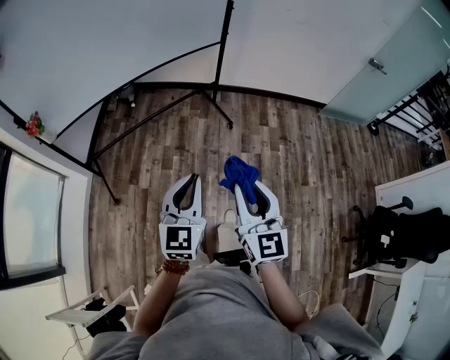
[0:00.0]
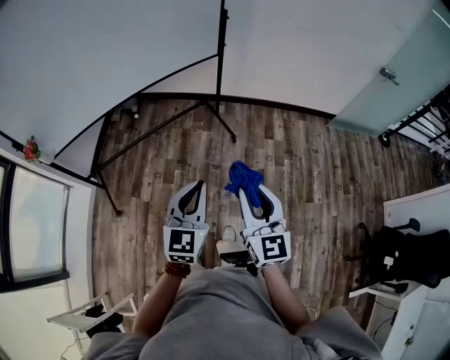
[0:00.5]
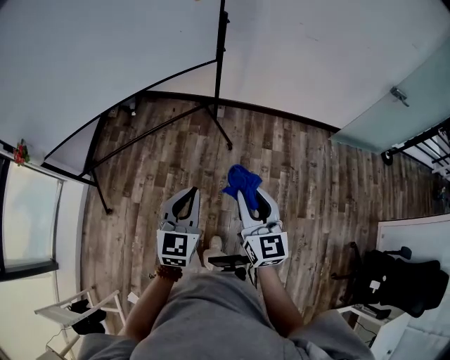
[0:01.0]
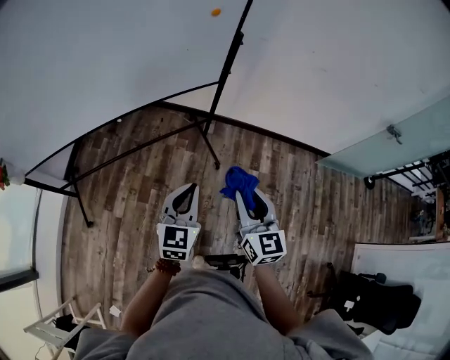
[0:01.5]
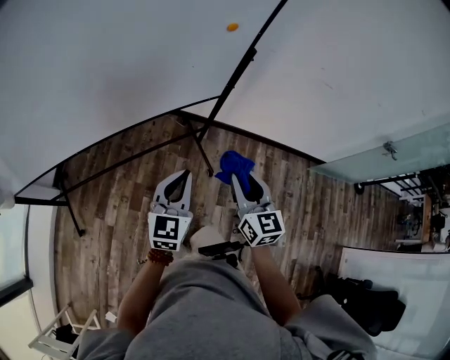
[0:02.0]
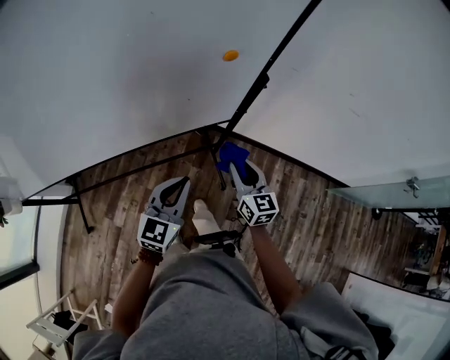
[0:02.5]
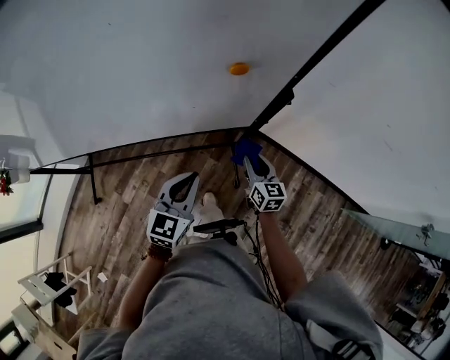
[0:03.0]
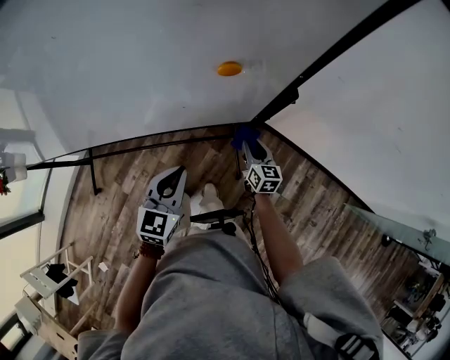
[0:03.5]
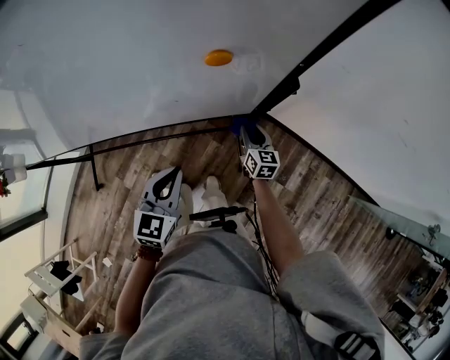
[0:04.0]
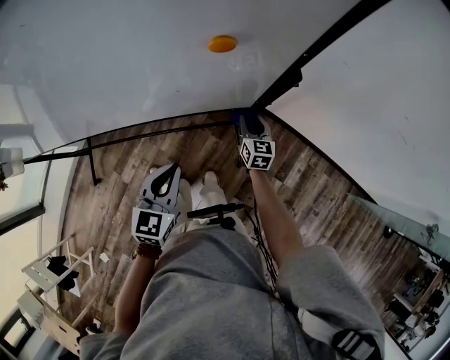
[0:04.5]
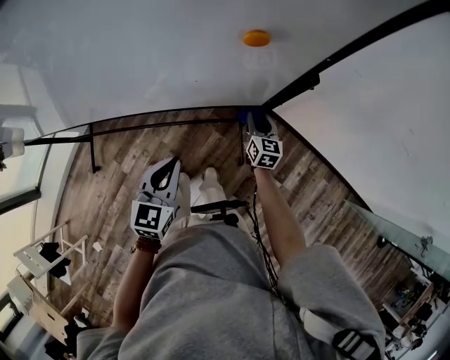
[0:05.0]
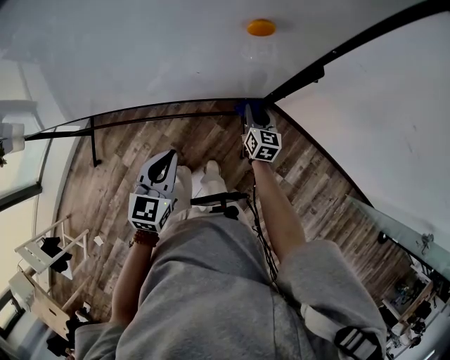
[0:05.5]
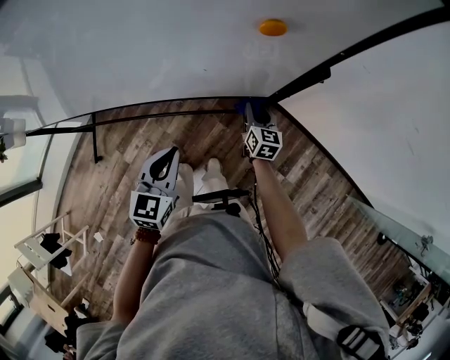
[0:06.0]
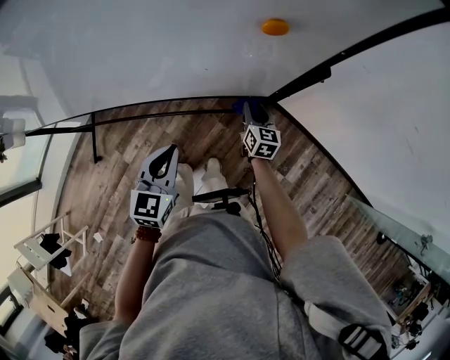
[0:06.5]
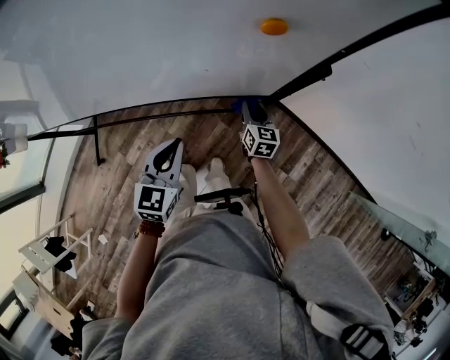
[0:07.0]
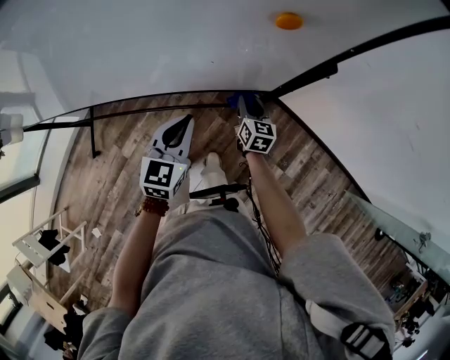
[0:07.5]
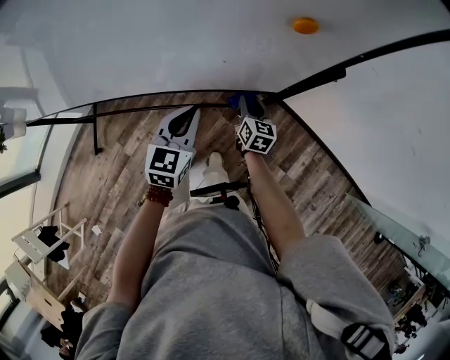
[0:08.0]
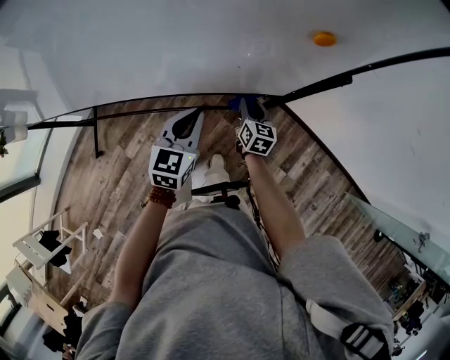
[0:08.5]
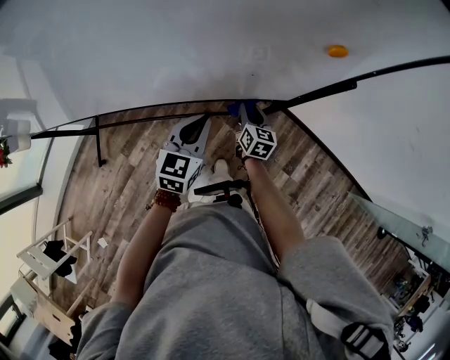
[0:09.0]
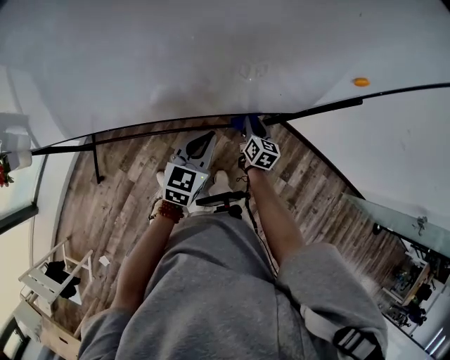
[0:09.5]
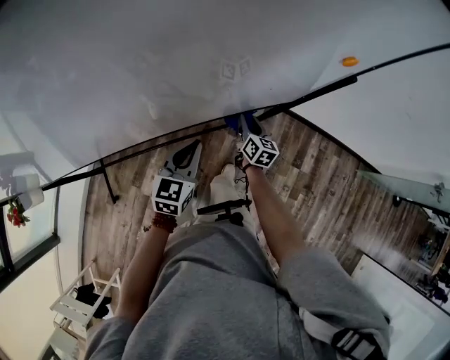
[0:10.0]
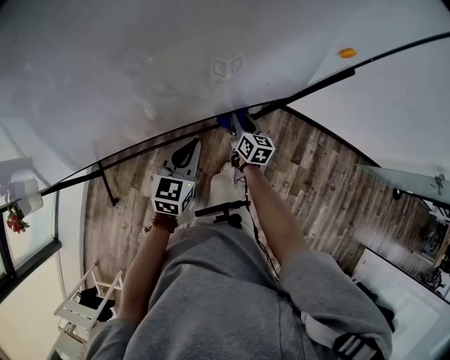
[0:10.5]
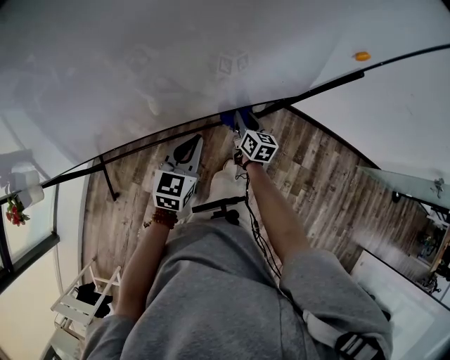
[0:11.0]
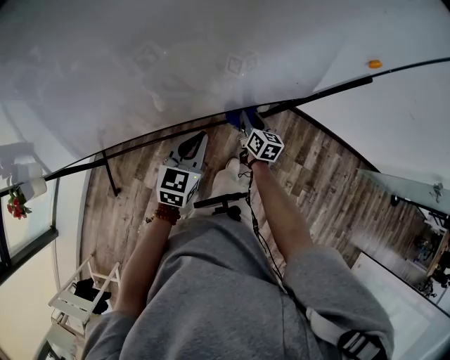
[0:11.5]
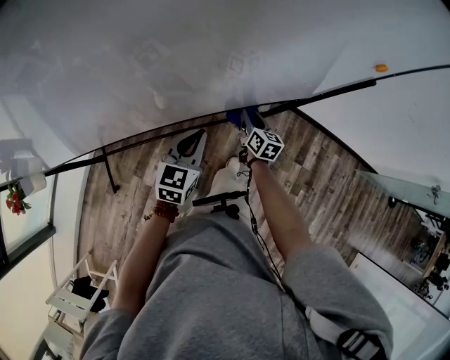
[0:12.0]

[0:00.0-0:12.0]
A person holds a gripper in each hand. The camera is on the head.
0:00.0 to 0:02.0: Both grippers are carried forward, some 60 cm.
0:02.0 to 0:04.0: The left gripper heads forward and downward, covering about 20 cm, and changes its angle by approximately 20 degrees. Meanwhile the right gripper shifts about 50 cm forward and downward, and rotates some 20 degrees.
0:04.0 to 0:06.0: The grippers make only small movements.
0:06.0 to 0:08.0: The left gripper heads forward, covering roughly 10 cm. The right gripper shifts by approximately 5 cm.
0:08.0 to 0:10.0: The two grippers go approximately 10 cm to the left.
0:10.0 to 0:12.0: Both grippers move to the left, approximately 5 cm.

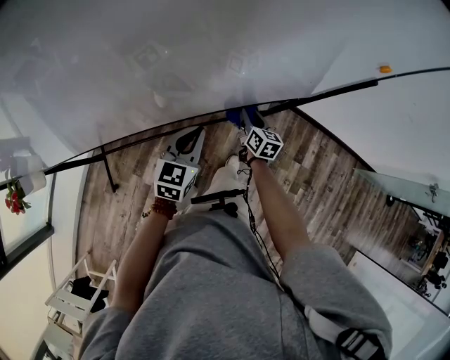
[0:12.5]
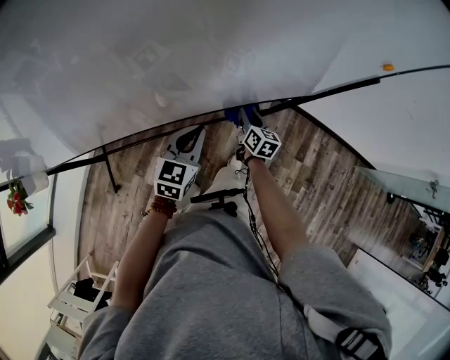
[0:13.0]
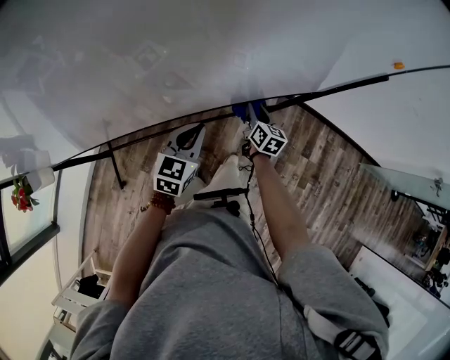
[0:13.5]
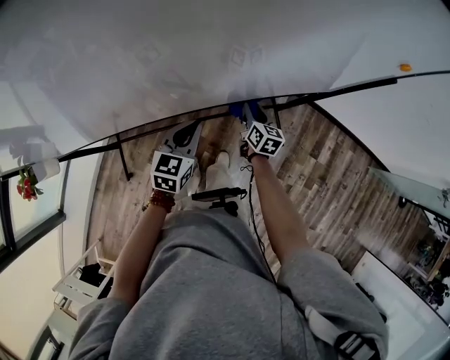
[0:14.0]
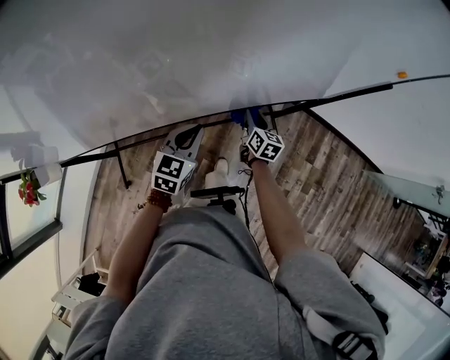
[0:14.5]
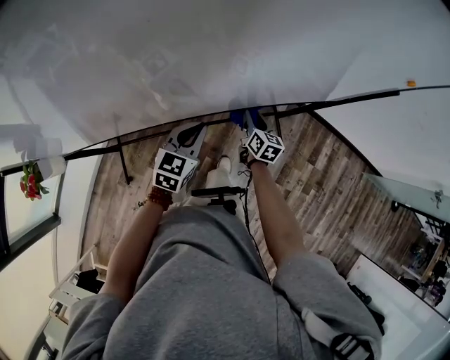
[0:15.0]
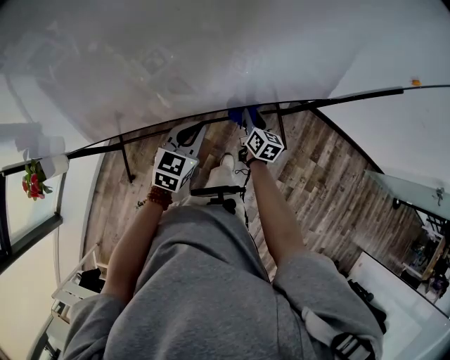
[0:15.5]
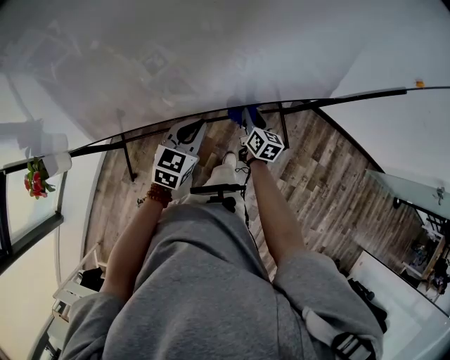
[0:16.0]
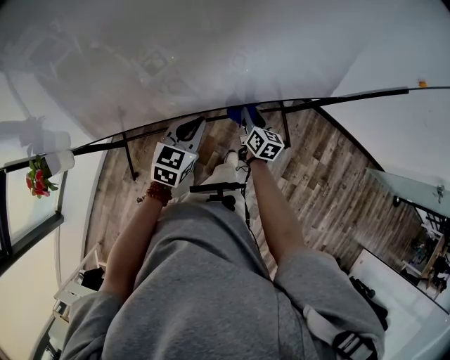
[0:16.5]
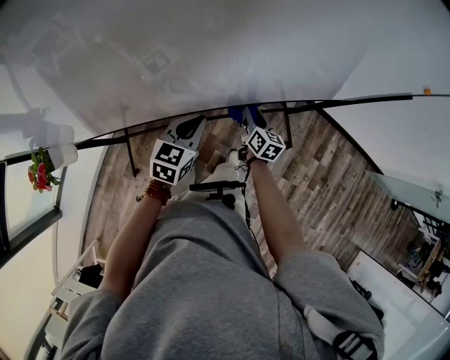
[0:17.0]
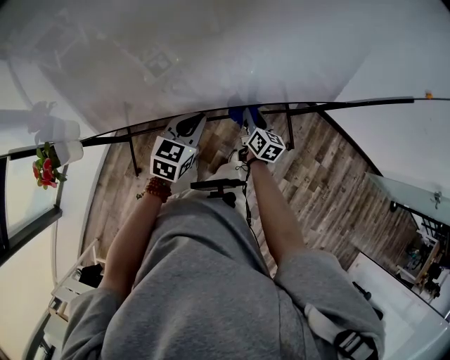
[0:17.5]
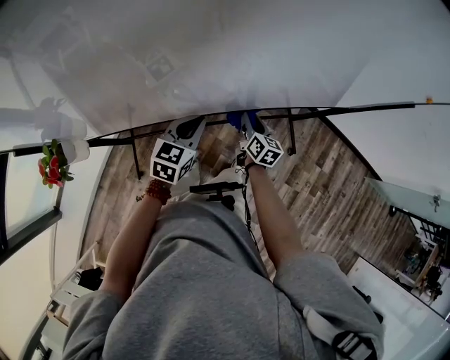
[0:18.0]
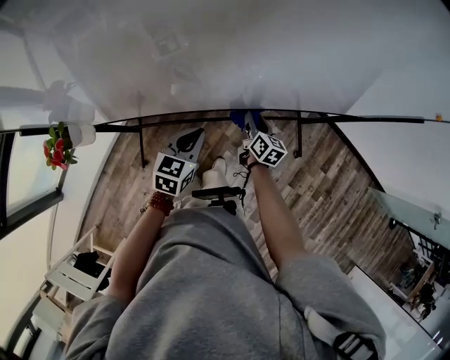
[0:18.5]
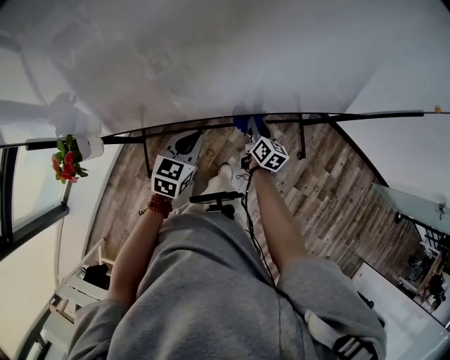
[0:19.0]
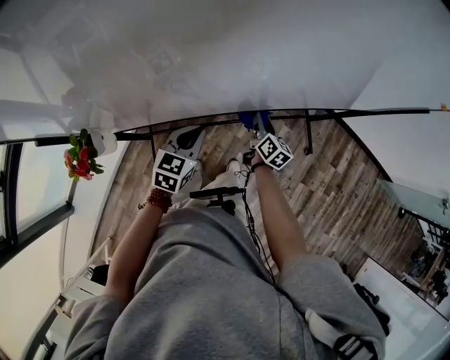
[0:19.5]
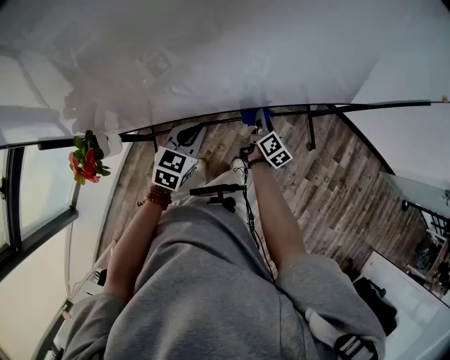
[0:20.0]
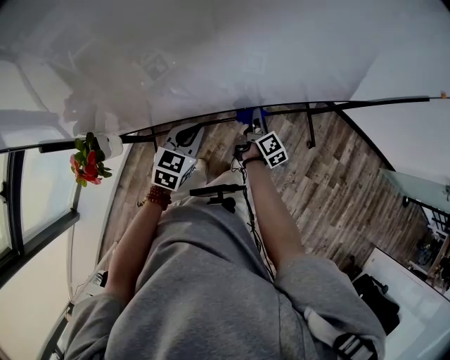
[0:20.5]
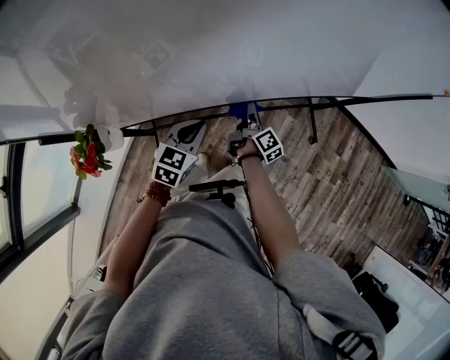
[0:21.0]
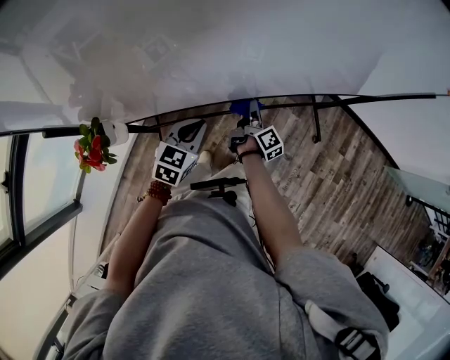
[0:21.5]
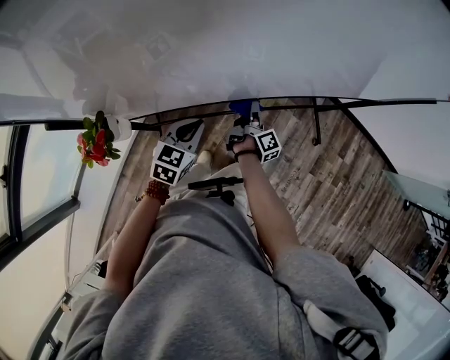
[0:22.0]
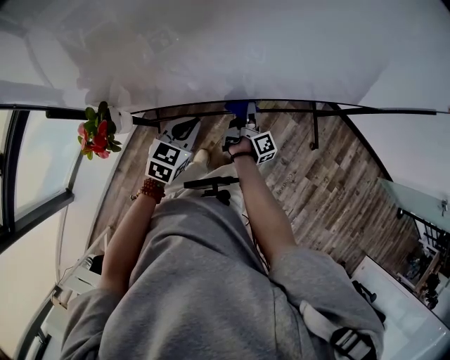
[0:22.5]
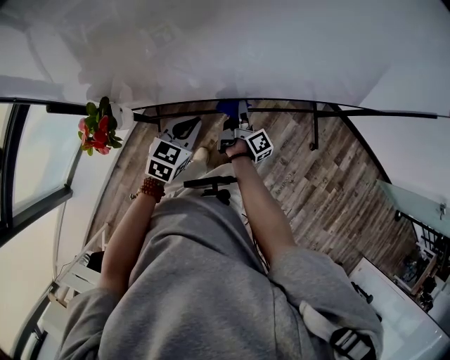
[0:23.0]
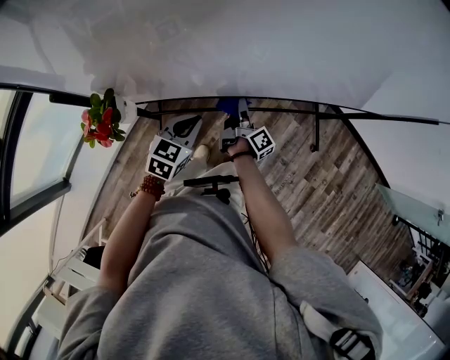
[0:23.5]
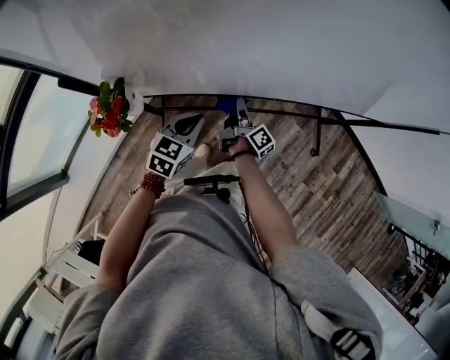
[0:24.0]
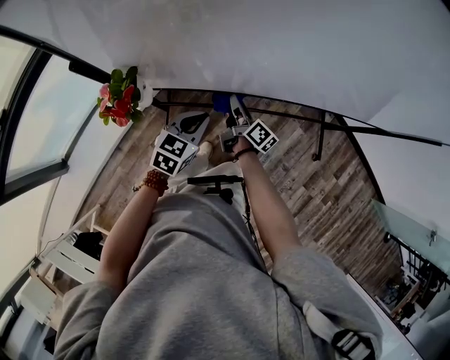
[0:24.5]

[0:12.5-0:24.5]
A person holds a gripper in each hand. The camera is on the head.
0:12.5 to 0:14.5: Both grippers move to the left, approximately 5 cm.
0:14.5 to 0:16.5: The grippers both shift to the left by approximately 10 cm.
0:16.5 to 0:18.5: The right gripper travels to the left by approximately 10 cm; the left gripper goes about 10 cm to the left and backward.
0:18.5 to 0:20.5: The left gripper travels to the left by about 10 cm. The right gripper shifts roughly 5 cm to the left, and swivels some 40 degrees.
0:20.5 to 0:22.5: The left gripper shifts by approximately 5 cm, while the right gripper heads to the left, covering roughly 5 cm, and rotates about 20 degrees.
0:22.5 to 0:24.5: The right gripper goes some 15 cm to the left, and swivels roughly 40 degrees.

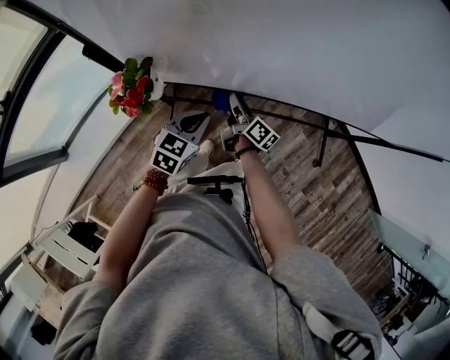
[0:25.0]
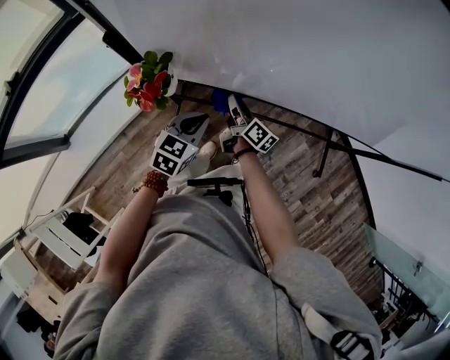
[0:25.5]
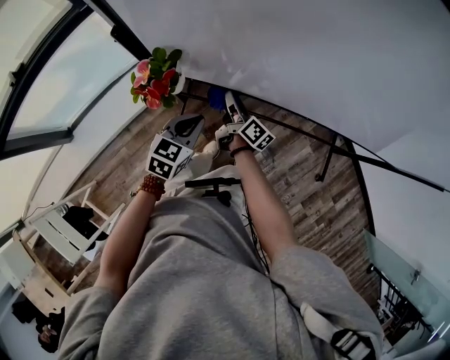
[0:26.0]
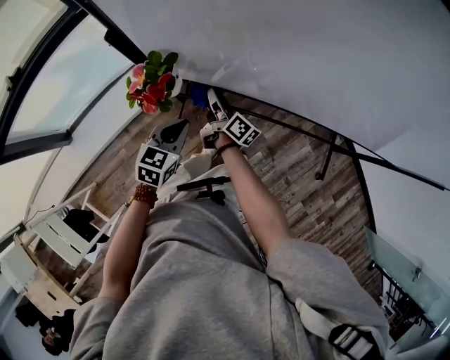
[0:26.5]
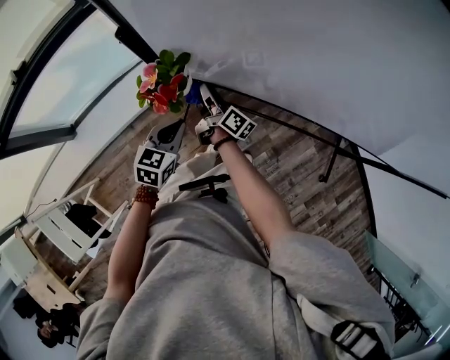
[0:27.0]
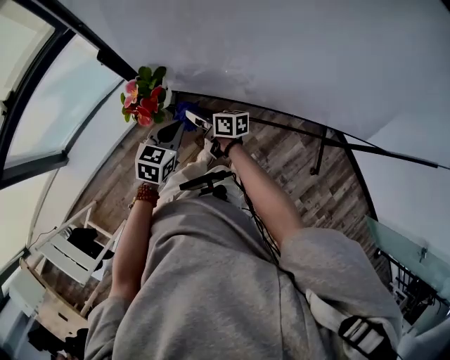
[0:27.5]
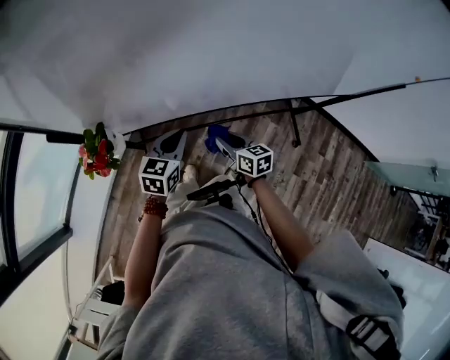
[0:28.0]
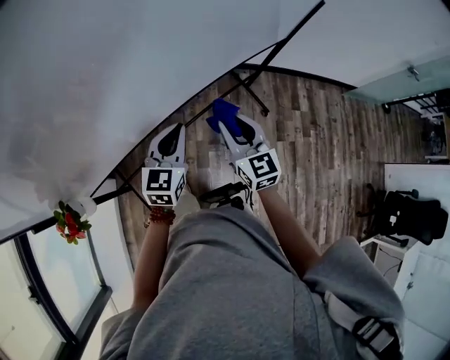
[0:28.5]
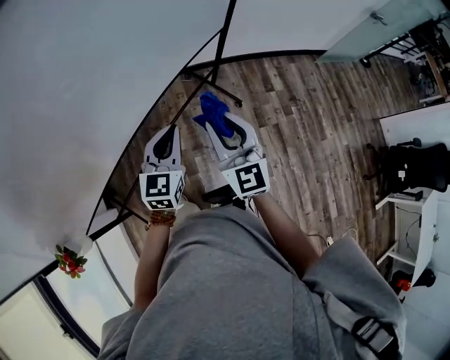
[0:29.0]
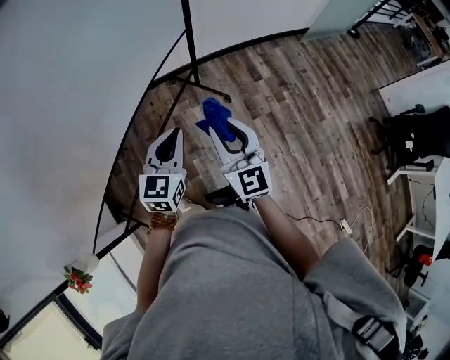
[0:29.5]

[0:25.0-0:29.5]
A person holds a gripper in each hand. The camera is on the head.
0:25.0 to 0:27.0: Both grippers travel together to the left, some 15 cm. The left gripper rotates approximately 20 degrees.
0:27.0 to 0:29.5: Both grippers are carried roughly 70 cm. The right gripper swivels some 100 degrees. The left gripper swivels about 70 degrees.
